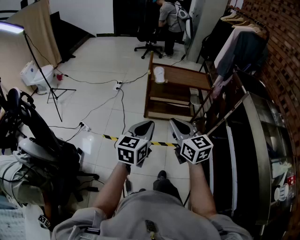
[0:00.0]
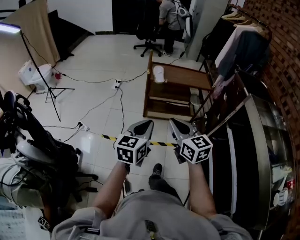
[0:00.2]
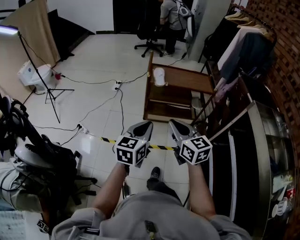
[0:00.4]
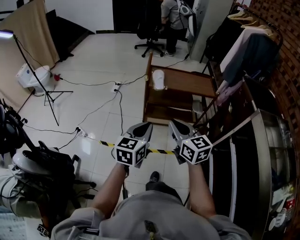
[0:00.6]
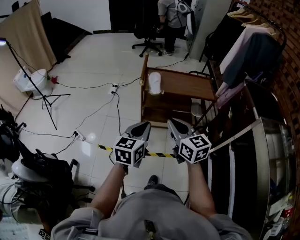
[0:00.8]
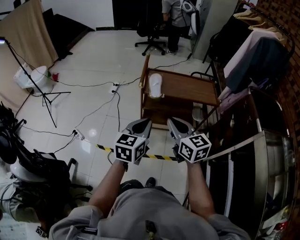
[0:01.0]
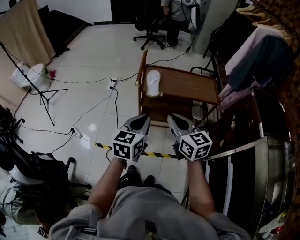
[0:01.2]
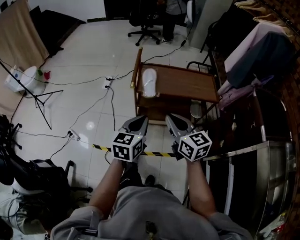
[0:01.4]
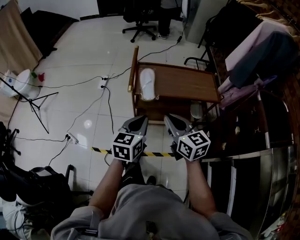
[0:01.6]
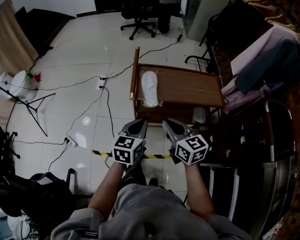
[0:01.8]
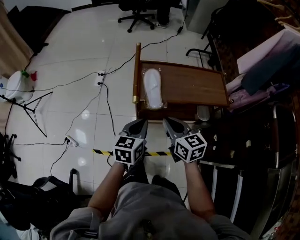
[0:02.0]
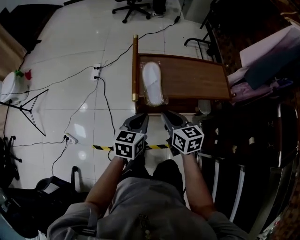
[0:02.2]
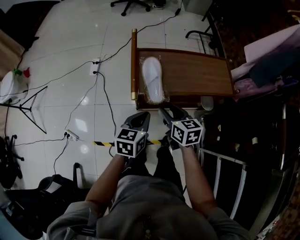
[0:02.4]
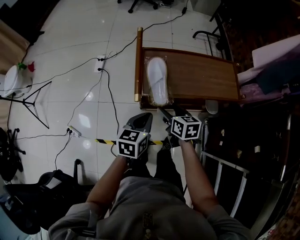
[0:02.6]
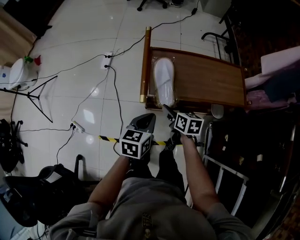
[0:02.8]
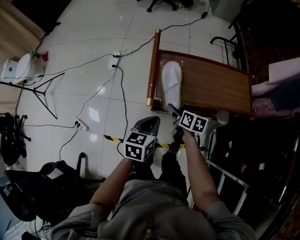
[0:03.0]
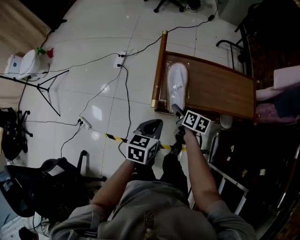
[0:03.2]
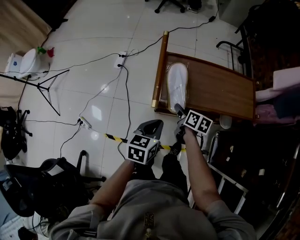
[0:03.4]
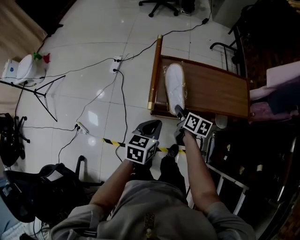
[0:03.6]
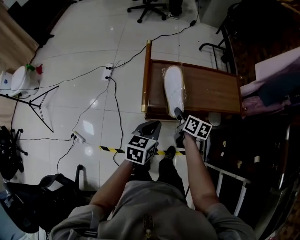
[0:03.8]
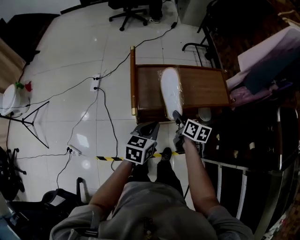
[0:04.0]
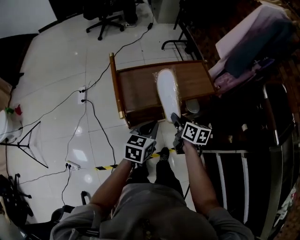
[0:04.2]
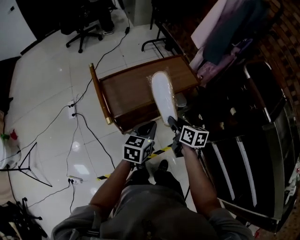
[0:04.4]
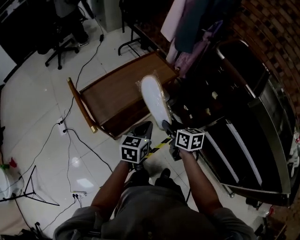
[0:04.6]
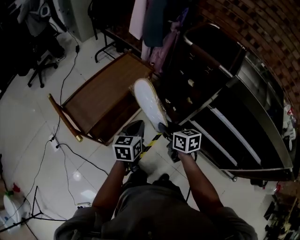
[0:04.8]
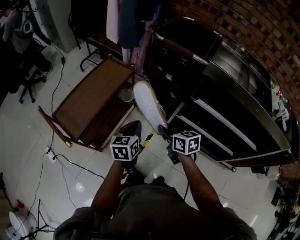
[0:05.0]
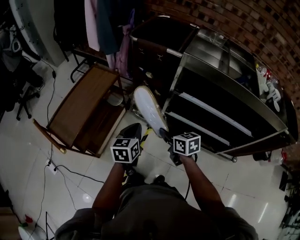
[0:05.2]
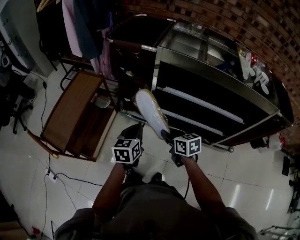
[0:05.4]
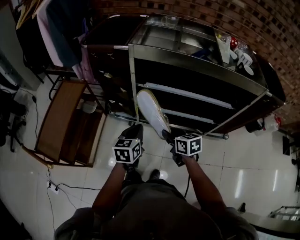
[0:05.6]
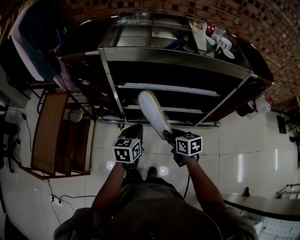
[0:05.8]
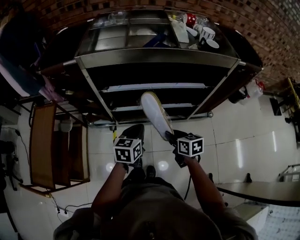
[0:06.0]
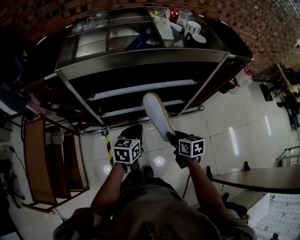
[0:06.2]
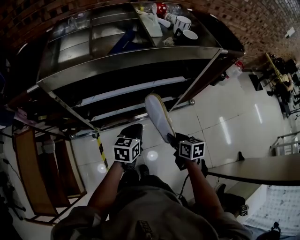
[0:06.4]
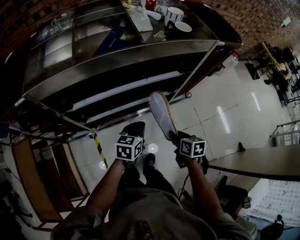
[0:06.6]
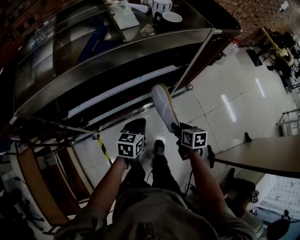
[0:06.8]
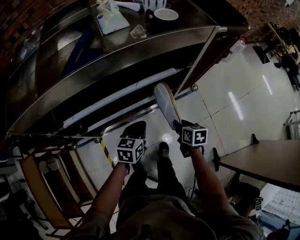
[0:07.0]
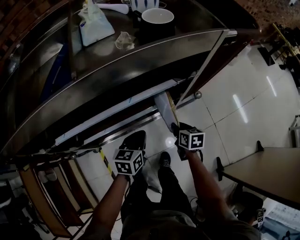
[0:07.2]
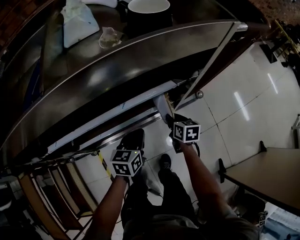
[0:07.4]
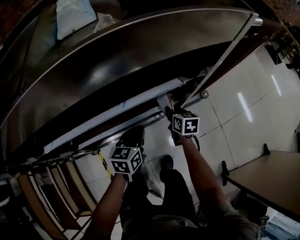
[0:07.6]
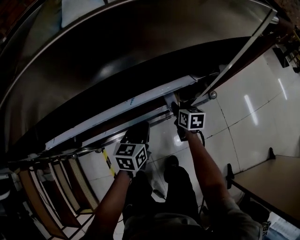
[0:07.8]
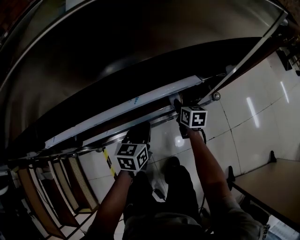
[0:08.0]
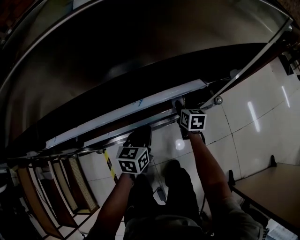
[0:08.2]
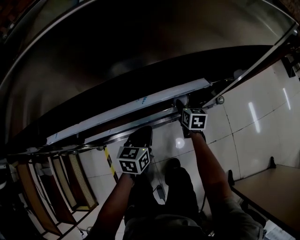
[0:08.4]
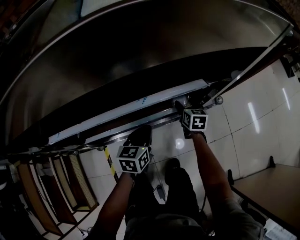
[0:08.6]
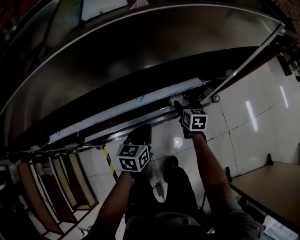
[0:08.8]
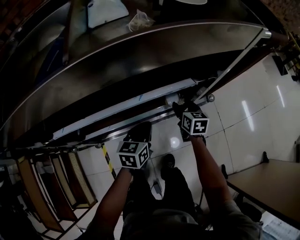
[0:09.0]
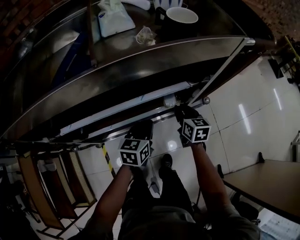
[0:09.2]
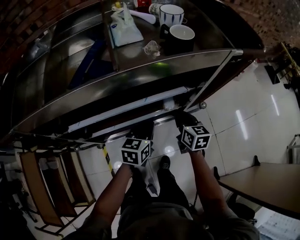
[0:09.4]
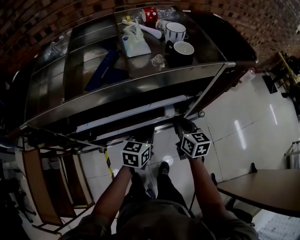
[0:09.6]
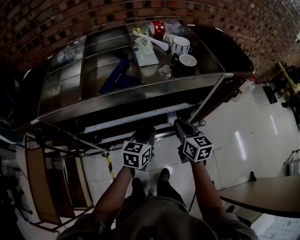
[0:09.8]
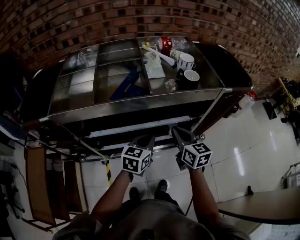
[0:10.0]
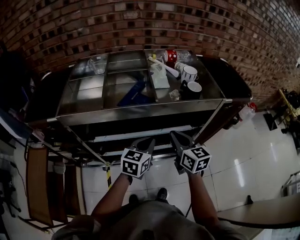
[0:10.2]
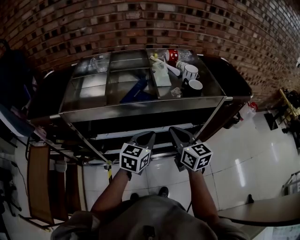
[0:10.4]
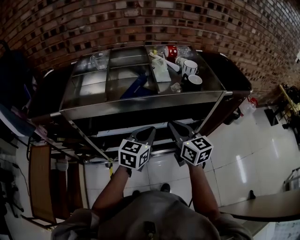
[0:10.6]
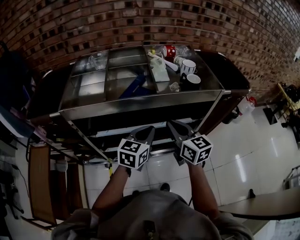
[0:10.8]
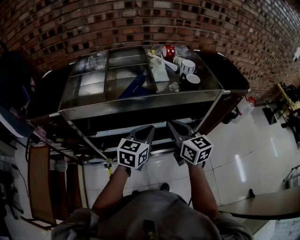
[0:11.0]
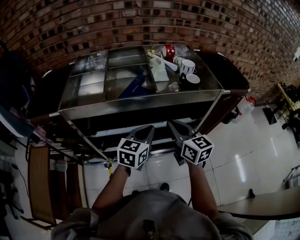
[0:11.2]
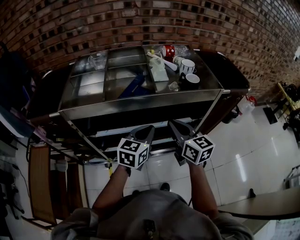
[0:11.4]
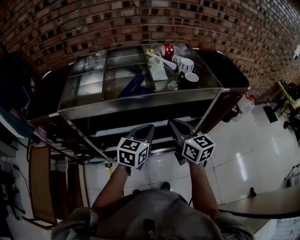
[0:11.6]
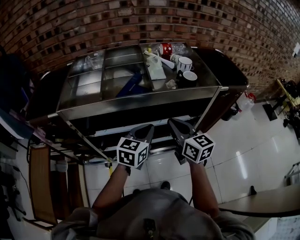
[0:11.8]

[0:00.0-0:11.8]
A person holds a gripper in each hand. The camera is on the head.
0:00.0 to 0:01.4: The two grippers go some 35 cm forward.
0:01.4 to 0:03.0: The right gripper shifts roughly 40 cm downward and forward, changes its angle by roughly 50 degrees, and opens; the left gripper goes roughly 25 cm forward and downward.
0:03.0 to 0:04.4: The left gripper ends up roughly 15 cm from where it was, and swivels about 40 degrees, while the right gripper shifts by some 25 cm, rotates about 30 degrees, and closes up.
0:04.4 to 0:06.0: Both grippers are carried about 60 cm. The right gripper turns by roughly 60 degrees. Meanwhile the left gripper changes its angle by about 60 degrees.
0:06.0 to 0:07.4: The left gripper ends up about 35 cm from where it was, while the right gripper moves about 40 cm, and swivels about 30 degrees.
0:07.4 to 0:08.8: The right gripper goes about 10 cm forward, and opens its fingers; the left gripper shifts by about 5 cm.
0:08.8 to 0:10.4: Both grippers travel together upward, approximately 40 cm. The right gripper turns by roughly 40 degrees, and closes.
0:10.4 to 0:11.8: There are only small adjustments of the grippers.

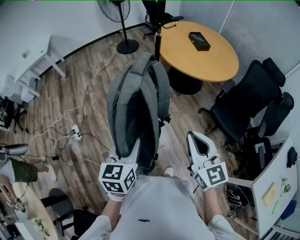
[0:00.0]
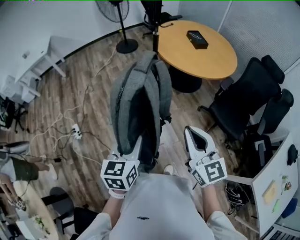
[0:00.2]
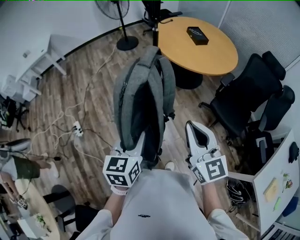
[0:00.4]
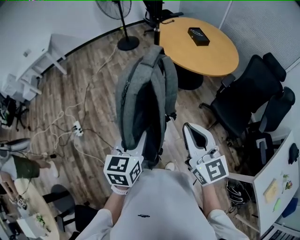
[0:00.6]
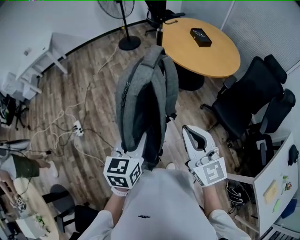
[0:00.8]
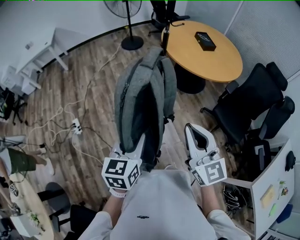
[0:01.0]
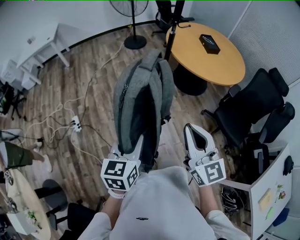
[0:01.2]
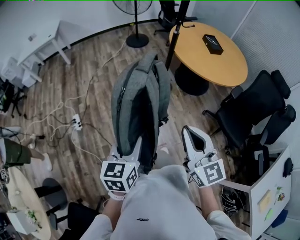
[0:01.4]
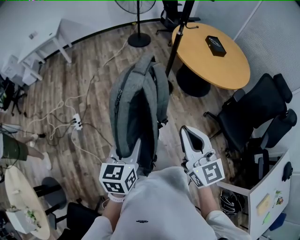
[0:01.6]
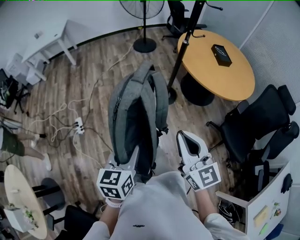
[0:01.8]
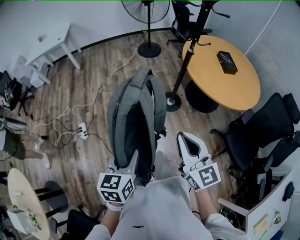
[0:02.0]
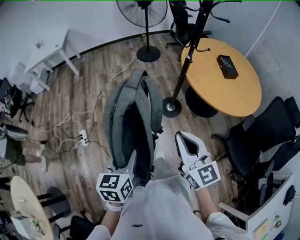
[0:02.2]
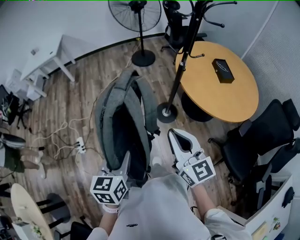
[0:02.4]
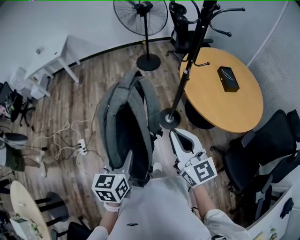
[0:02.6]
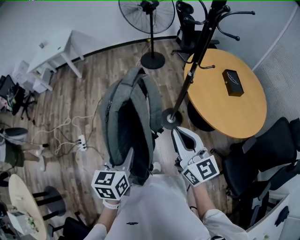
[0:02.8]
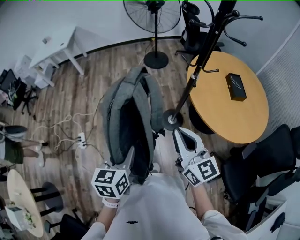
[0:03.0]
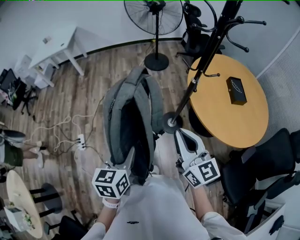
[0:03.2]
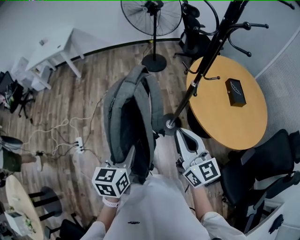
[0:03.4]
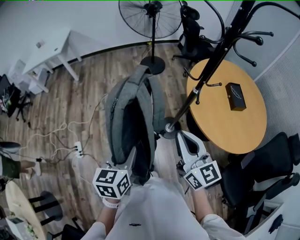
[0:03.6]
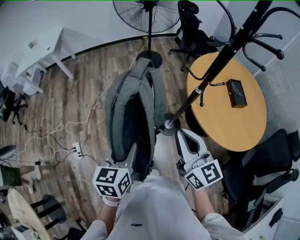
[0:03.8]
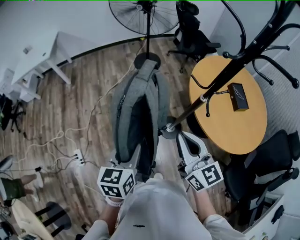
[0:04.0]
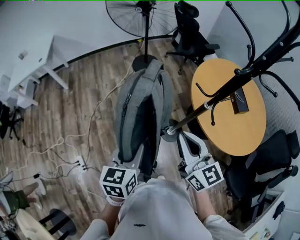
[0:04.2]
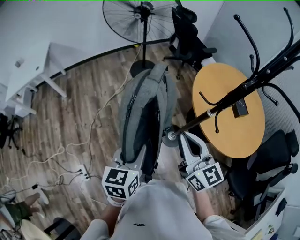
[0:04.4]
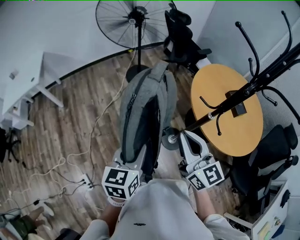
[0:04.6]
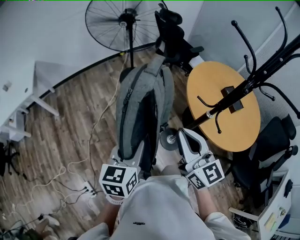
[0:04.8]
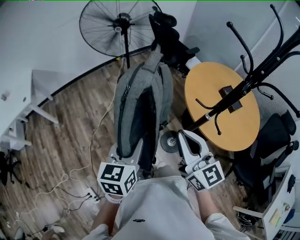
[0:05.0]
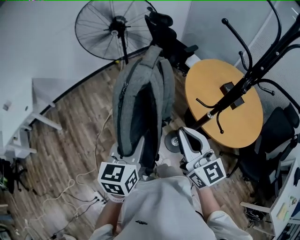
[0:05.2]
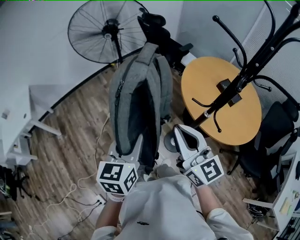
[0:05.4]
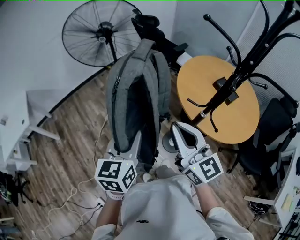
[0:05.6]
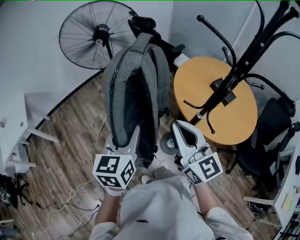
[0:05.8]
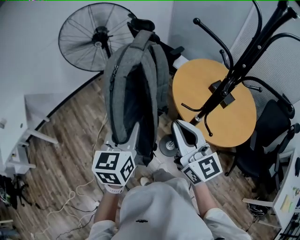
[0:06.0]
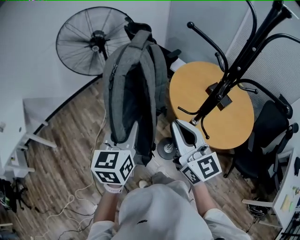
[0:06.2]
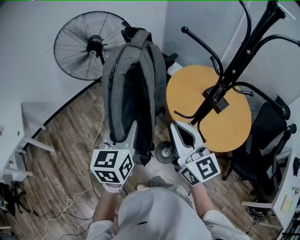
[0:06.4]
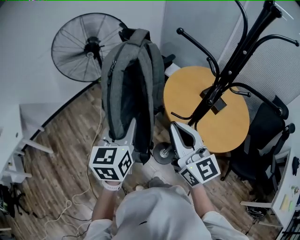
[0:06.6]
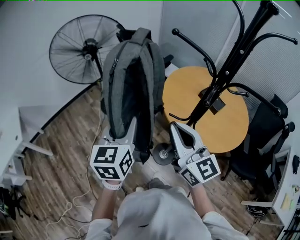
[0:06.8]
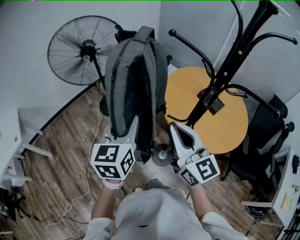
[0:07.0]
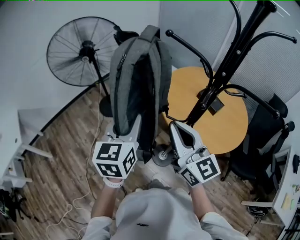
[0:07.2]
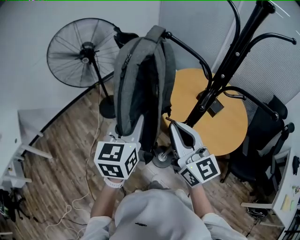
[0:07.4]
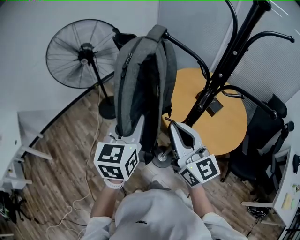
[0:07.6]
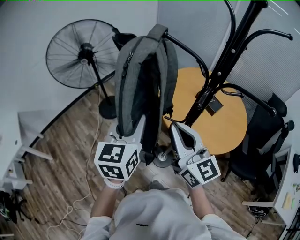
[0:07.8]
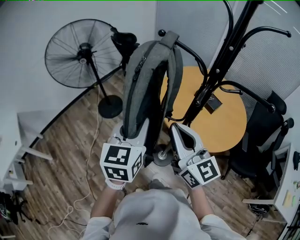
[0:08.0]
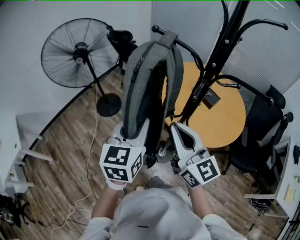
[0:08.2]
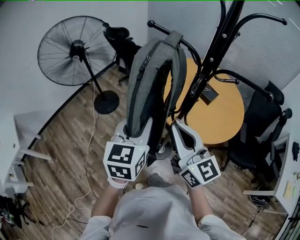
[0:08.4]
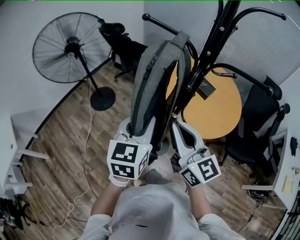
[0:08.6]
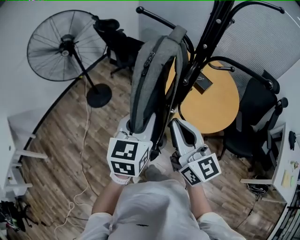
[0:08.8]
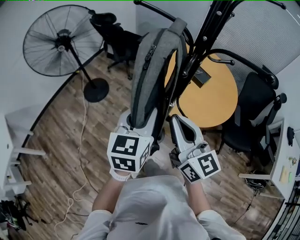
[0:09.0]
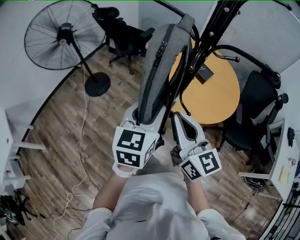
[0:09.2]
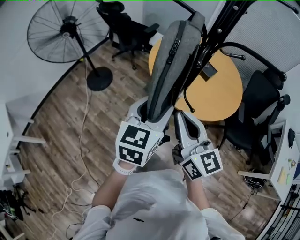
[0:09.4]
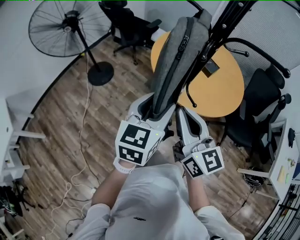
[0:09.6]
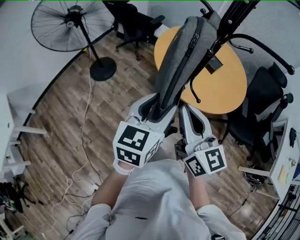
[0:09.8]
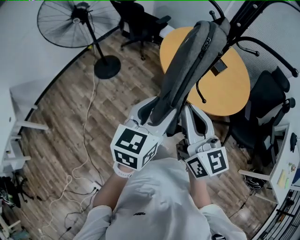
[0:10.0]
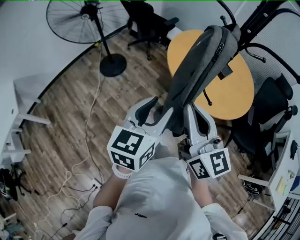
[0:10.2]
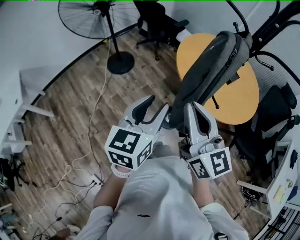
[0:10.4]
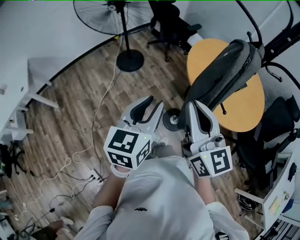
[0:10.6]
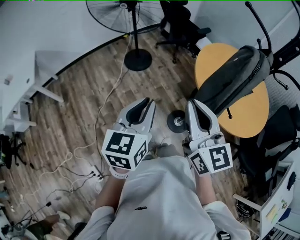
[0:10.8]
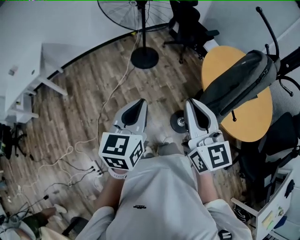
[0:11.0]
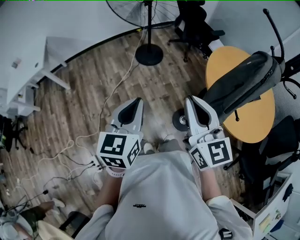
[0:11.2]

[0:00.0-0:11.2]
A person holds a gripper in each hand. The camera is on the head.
0:00.0 to 0:01.6: Both grippers travel together to the left, approximately 10 cm.
0:01.6 to 0:03.2: Both grippers travel together forward, about 35 cm.
0:03.2 to 0:04.8: The right gripper heads forward and to the left, covering some 30 cm. Meanwhile the left gripper goes roughly 35 cm forward, and rotates about 30 degrees.
0:04.8 to 0:06.4: The left gripper goes approximately 20 cm forward, upward and to the right. The right gripper travels forward, upward and to the right by approximately 10 cm.
0:06.4 to 0:08.0: The left gripper heads to the right, covering roughly 10 cm. The right gripper moves to the right, approximately 5 cm.
0:08.0 to 0:09.6: The right gripper is displaced backward by roughly 5 cm. Meanwhile the left gripper heads to the right, backward and downward, covering some 10 cm, and opens up.
0:09.6 to 0:11.2: The right gripper shifts by about 15 cm, and turns by approximately 30 degrees, while the left gripper changes place by roughly 30 cm, changes its angle by approximately 40 degrees, and closes.

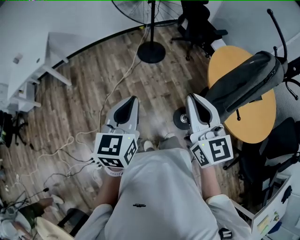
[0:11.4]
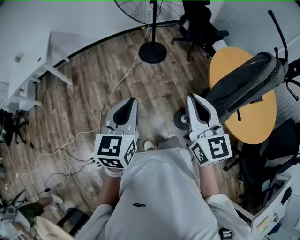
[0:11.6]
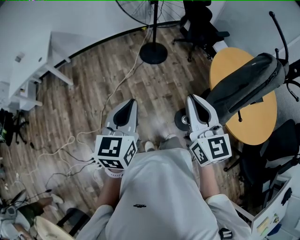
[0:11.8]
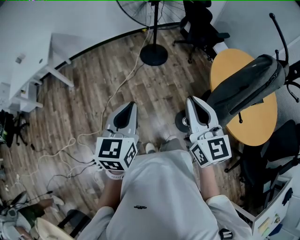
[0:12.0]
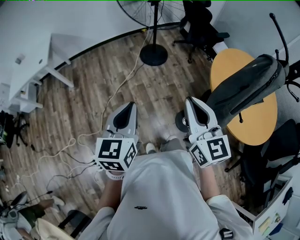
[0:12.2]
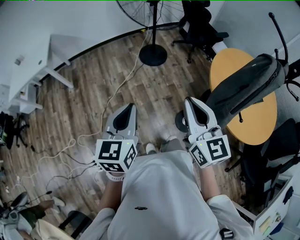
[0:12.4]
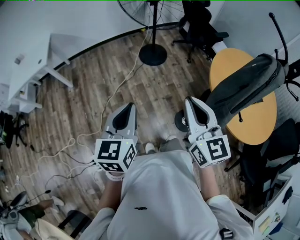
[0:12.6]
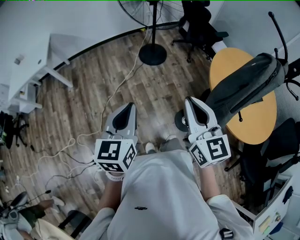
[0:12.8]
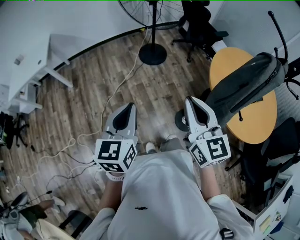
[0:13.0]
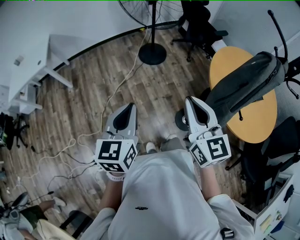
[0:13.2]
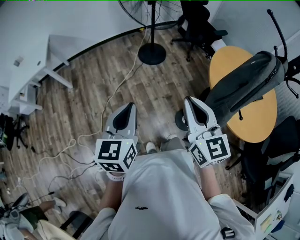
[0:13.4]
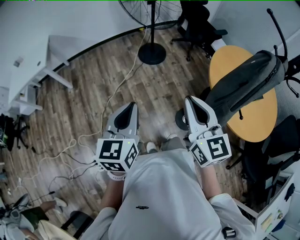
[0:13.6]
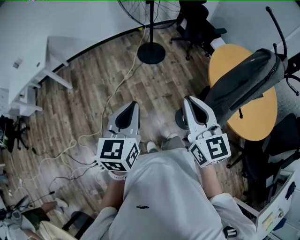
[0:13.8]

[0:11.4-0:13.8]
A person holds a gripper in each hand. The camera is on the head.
0:11.4 to 0:12.6: The grippers move only a little.
0:12.6 to 0:13.8: Both grippers stay put.
